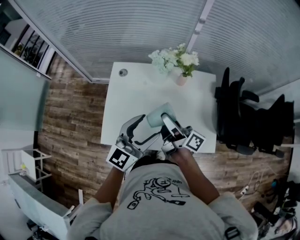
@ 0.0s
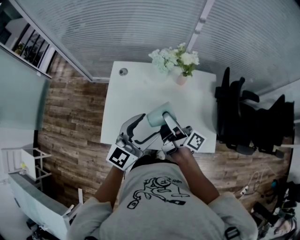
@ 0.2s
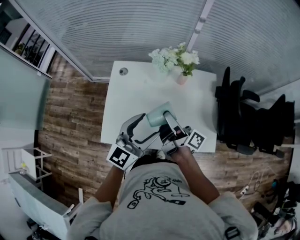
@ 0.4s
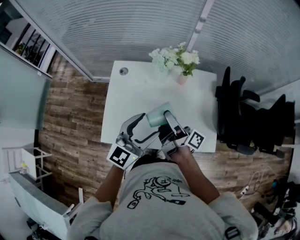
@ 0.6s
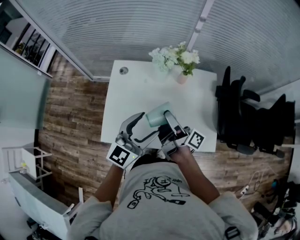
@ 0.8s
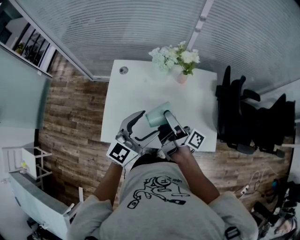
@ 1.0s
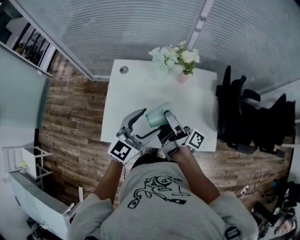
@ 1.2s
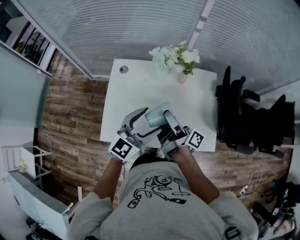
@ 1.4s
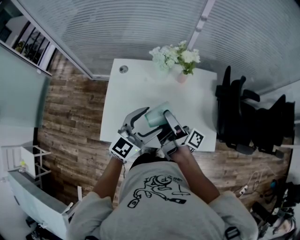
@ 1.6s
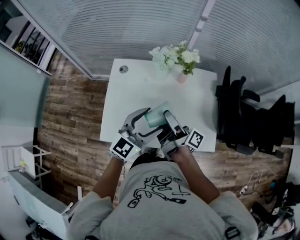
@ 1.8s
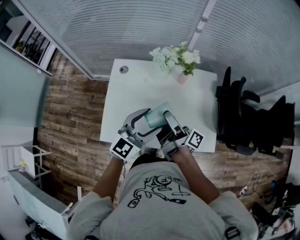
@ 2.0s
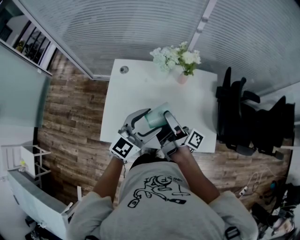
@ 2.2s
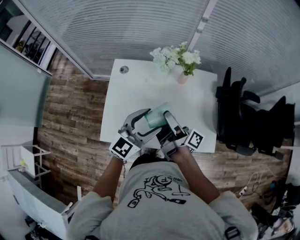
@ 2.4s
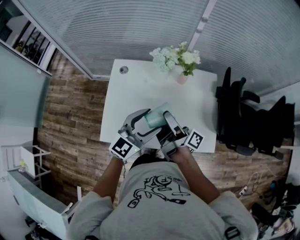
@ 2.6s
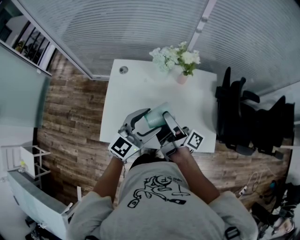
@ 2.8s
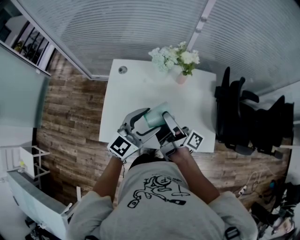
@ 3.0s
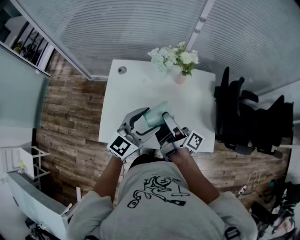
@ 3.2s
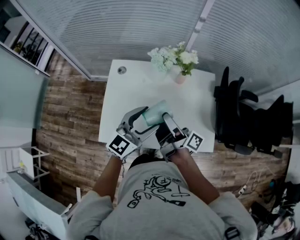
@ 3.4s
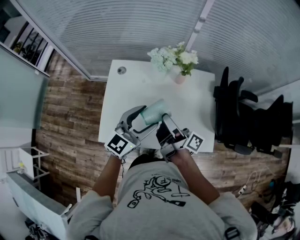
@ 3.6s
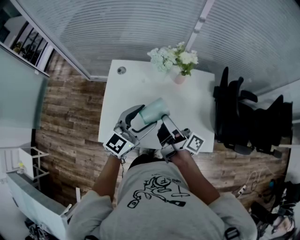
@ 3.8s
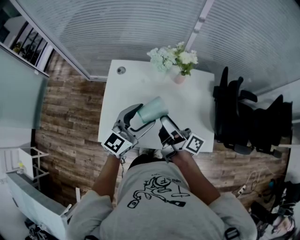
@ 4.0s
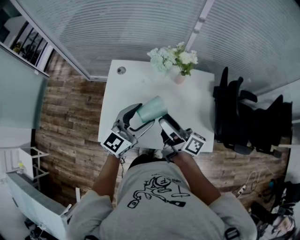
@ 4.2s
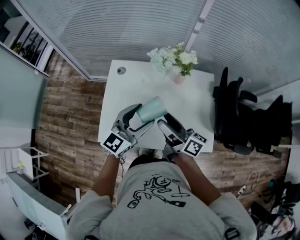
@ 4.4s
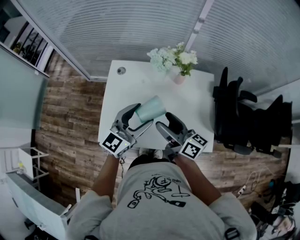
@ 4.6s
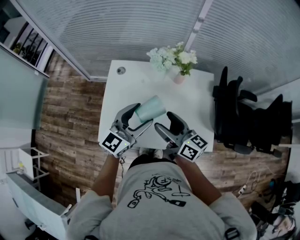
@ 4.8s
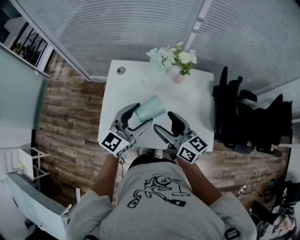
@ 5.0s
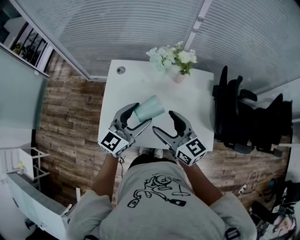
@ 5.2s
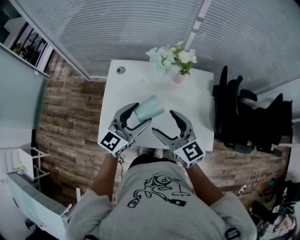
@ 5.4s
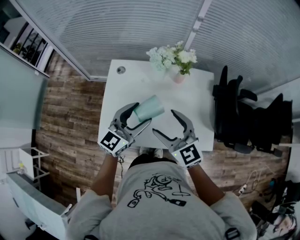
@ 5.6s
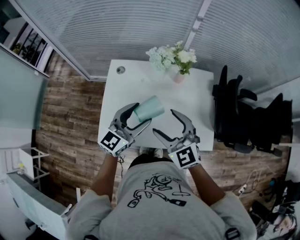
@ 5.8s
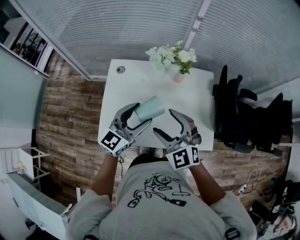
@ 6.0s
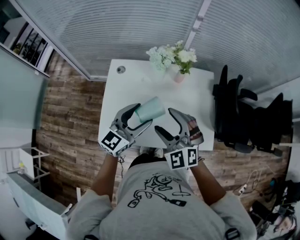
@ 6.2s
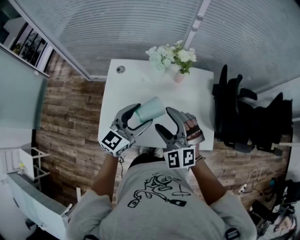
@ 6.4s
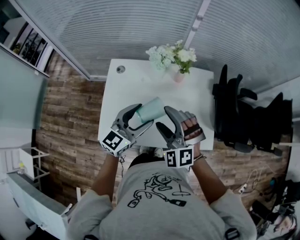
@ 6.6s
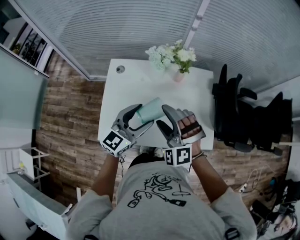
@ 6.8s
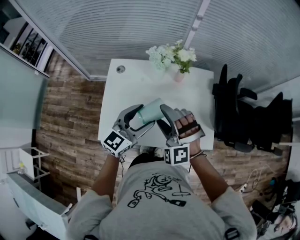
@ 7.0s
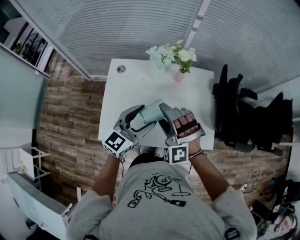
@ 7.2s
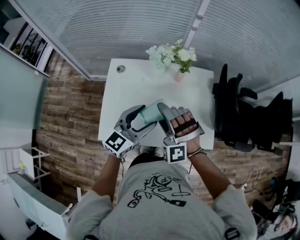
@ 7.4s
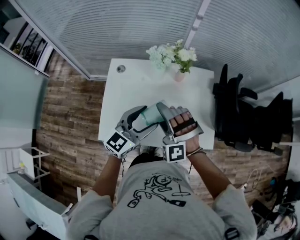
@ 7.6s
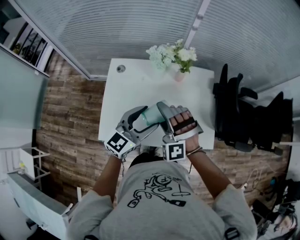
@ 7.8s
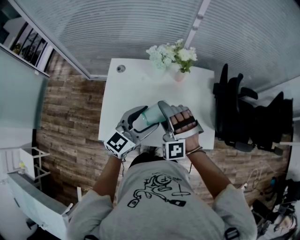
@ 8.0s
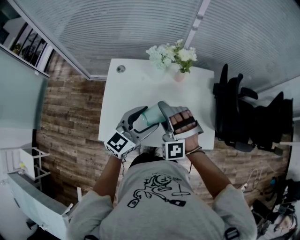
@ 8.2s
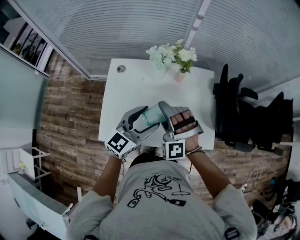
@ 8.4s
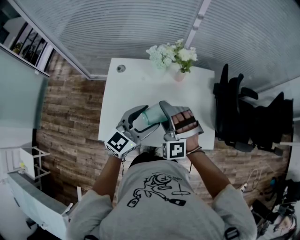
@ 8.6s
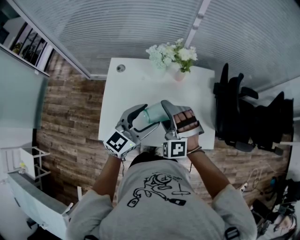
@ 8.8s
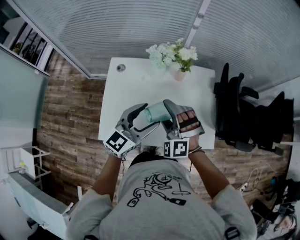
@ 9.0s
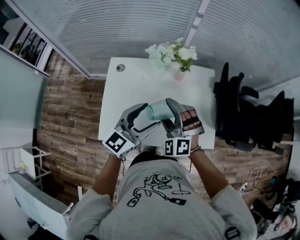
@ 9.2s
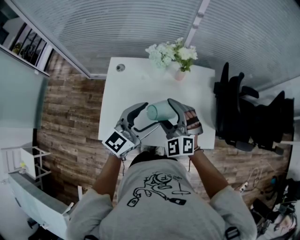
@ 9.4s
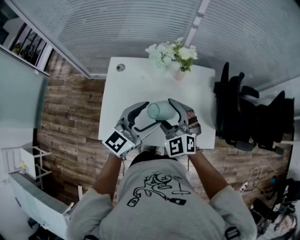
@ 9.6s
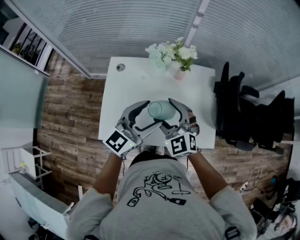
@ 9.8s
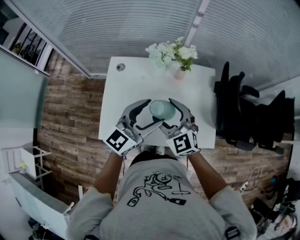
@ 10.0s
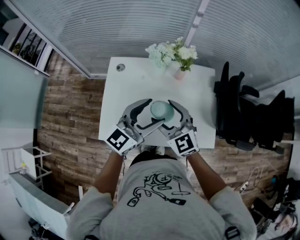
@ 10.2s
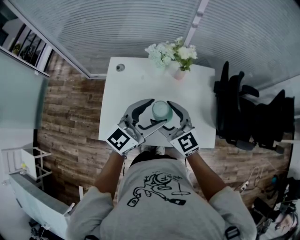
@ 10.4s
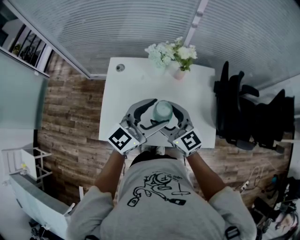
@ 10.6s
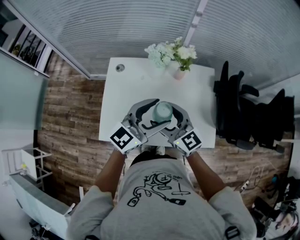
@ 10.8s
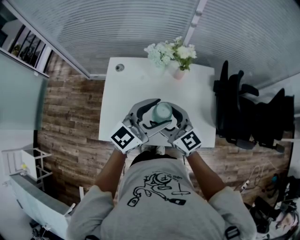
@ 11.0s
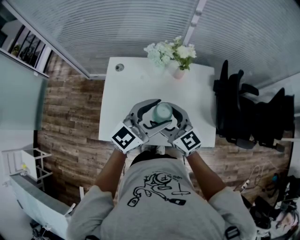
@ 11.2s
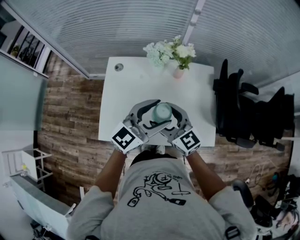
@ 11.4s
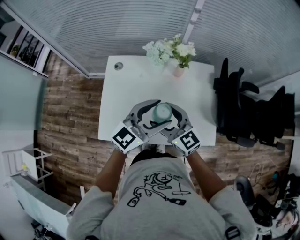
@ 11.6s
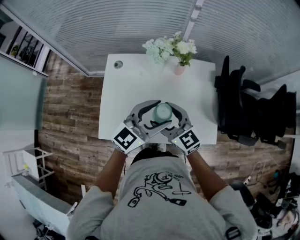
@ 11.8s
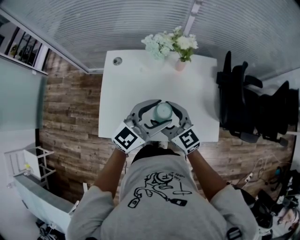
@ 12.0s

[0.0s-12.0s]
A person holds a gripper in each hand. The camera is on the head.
0.0s to 1.6s: The grippers make only small movements.
1.6s to 3.0s: Both grippers stay put.
3.0s to 4.4s: The right gripper changes its angle by about 30 degrees.
4.4s to 6.0s: The right gripper rotates around the line of its fingers by roughly 90 degrees, counterclockwise from behind.
6.0s to 7.6s: The right gripper rotates around the line of its fingers by about 50 degrees, counterclockwise from behind.
7.6s to 9.0s: The grippers stay close to where they were, moving slightly.
9.0s to 10.4s: The right gripper rolls clockwise, seen from behind, by about 60 degrees.
10.4s to 12.0s: The left gripper moves roughly 5 cm. The right gripper goes approximately 5 cm downward.

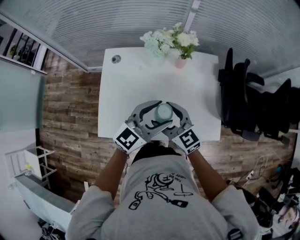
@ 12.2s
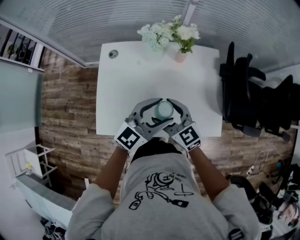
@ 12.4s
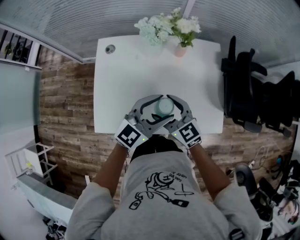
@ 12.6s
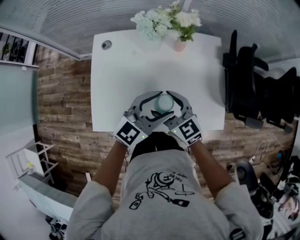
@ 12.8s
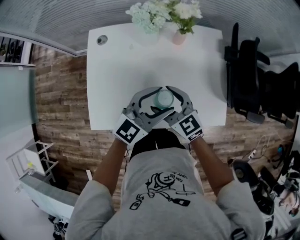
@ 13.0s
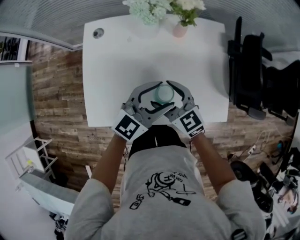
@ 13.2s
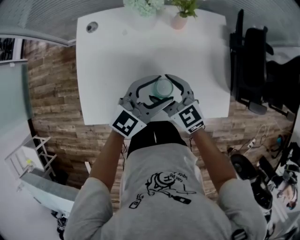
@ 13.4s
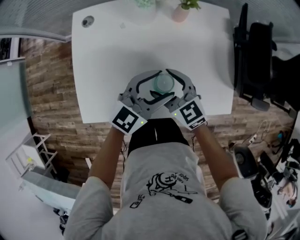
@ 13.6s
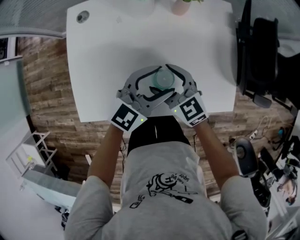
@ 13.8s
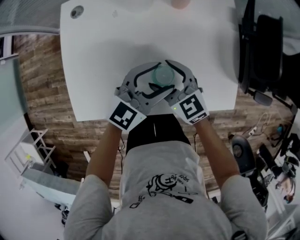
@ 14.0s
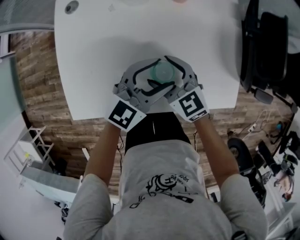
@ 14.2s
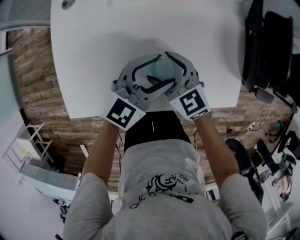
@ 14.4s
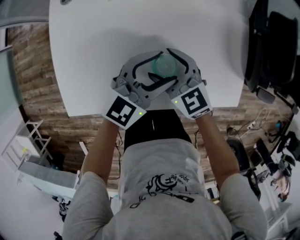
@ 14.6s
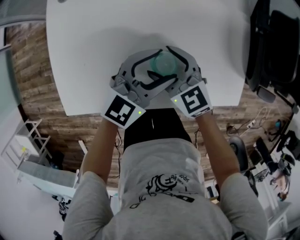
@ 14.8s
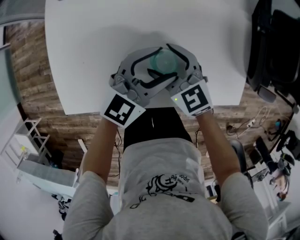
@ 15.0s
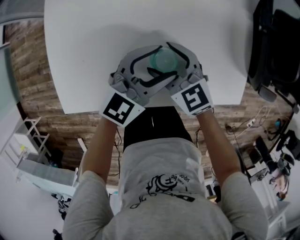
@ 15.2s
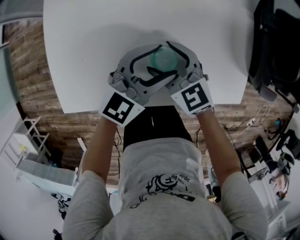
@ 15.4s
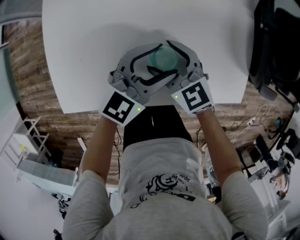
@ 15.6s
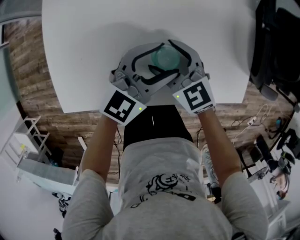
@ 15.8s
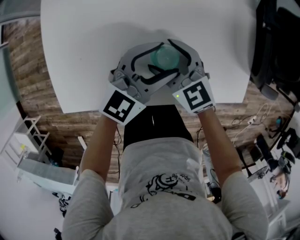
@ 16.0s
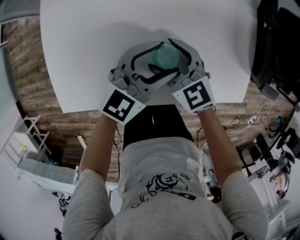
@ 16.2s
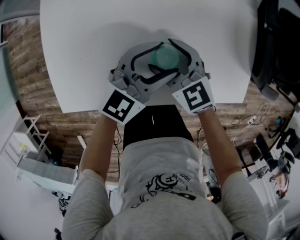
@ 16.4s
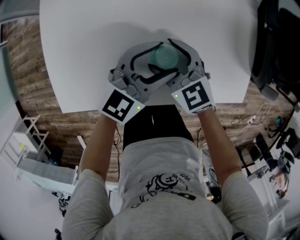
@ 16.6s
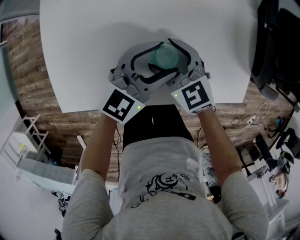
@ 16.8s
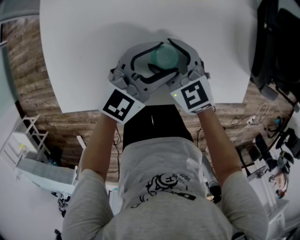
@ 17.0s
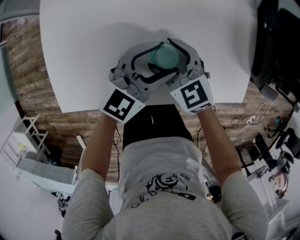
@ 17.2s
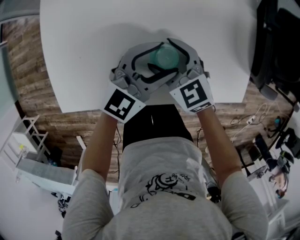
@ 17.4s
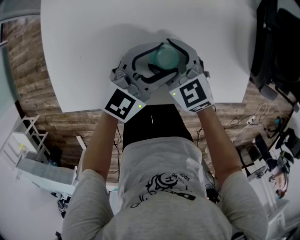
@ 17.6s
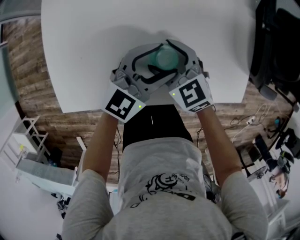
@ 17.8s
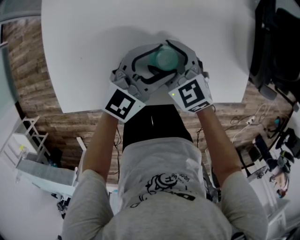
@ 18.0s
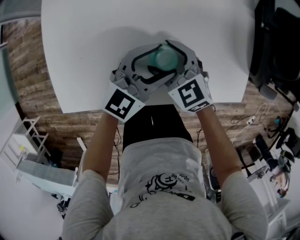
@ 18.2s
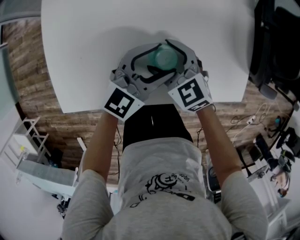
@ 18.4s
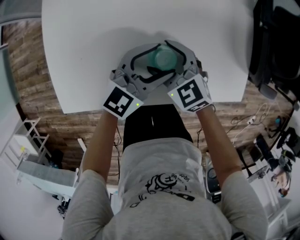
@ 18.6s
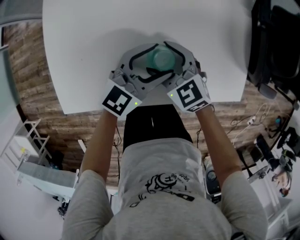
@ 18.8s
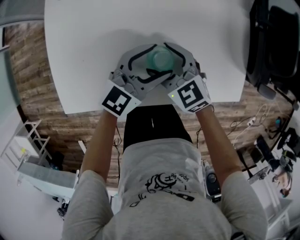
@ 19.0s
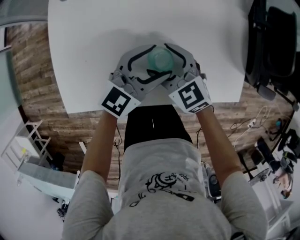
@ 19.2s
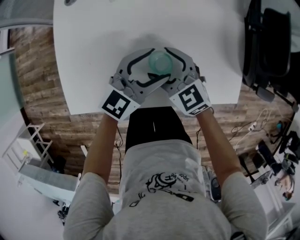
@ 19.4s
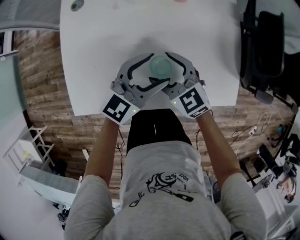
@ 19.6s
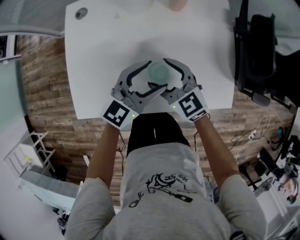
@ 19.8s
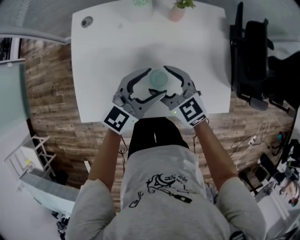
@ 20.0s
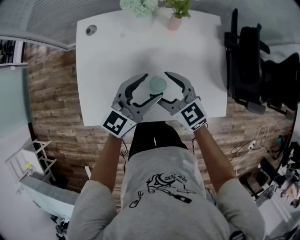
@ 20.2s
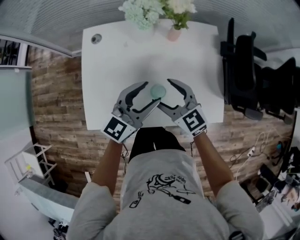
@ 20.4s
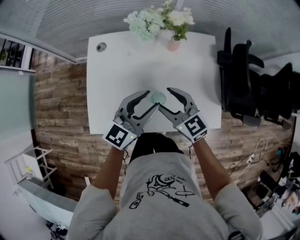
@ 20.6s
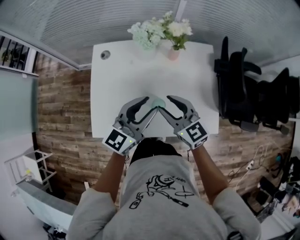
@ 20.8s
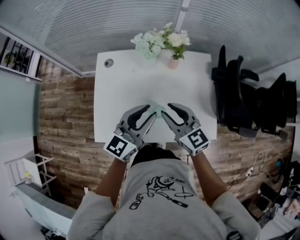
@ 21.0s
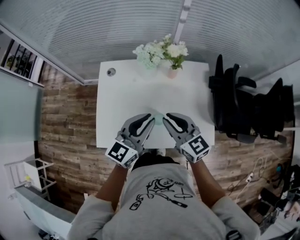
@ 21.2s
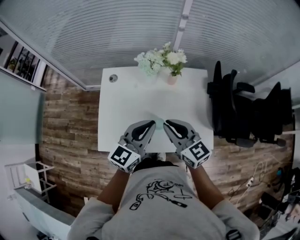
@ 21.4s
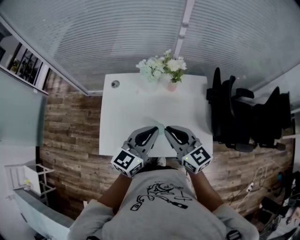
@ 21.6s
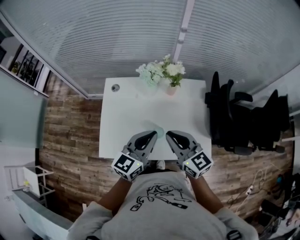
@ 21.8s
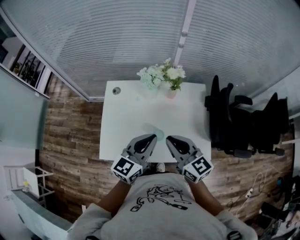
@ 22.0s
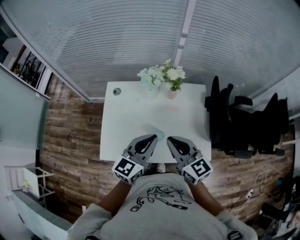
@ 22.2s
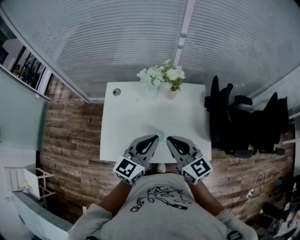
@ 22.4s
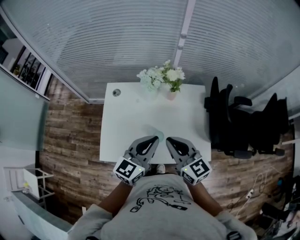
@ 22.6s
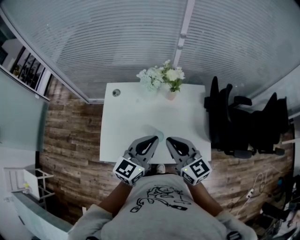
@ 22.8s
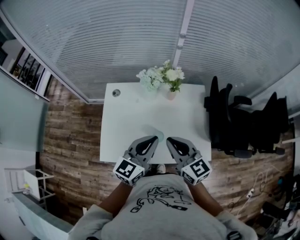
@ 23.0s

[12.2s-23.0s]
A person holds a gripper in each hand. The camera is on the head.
12.2s to 13.8s: The two grippers go some 15 cm downward.
13.8s to 15.2s: The grippers make only small movements.
15.2s to 16.8s: The grippers stay close to where they were, moving slightly.
16.8s to 18.4s: Both grippers stay put.
18.4s to 20.0s: Both grippers move upward, some 10 cm.
20.0s to 21.4s: Both grippers travel together upward, roughly 15 cm. The right gripper closes its fingers. The left gripper closes its fingers.
21.4s to 23.0s: The grippers make only small movements.

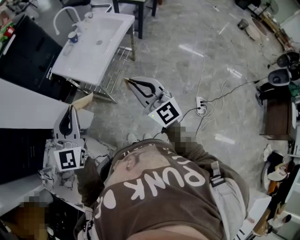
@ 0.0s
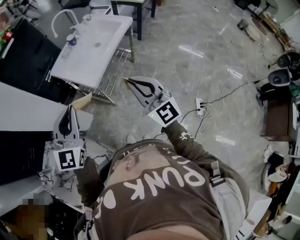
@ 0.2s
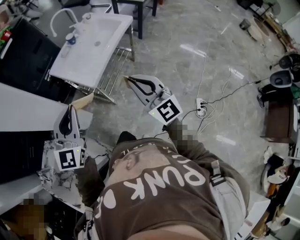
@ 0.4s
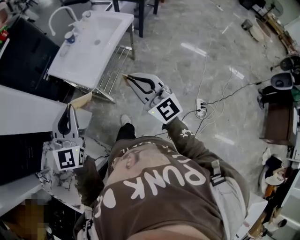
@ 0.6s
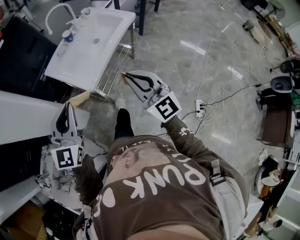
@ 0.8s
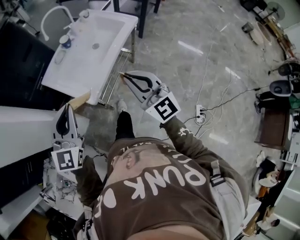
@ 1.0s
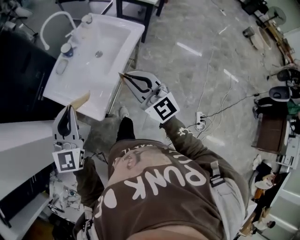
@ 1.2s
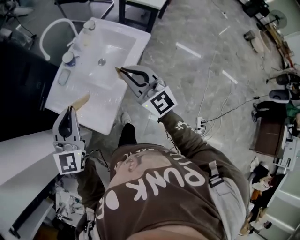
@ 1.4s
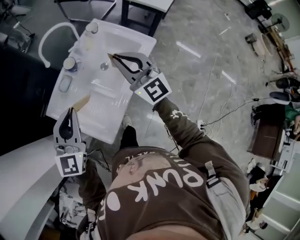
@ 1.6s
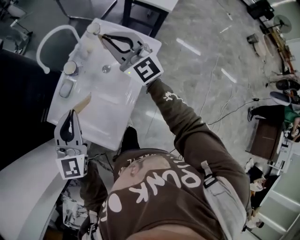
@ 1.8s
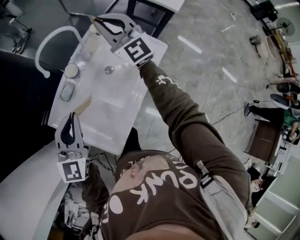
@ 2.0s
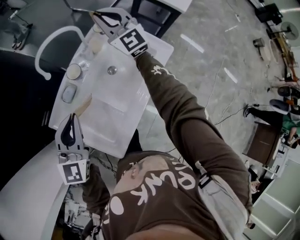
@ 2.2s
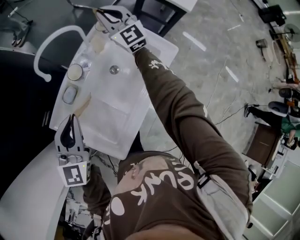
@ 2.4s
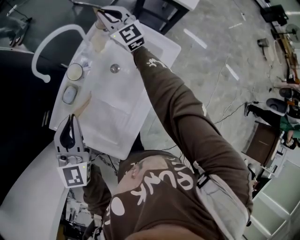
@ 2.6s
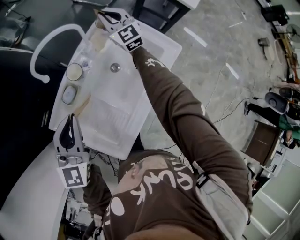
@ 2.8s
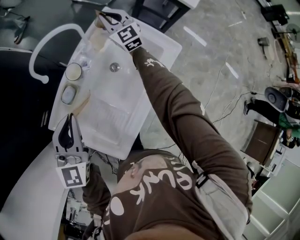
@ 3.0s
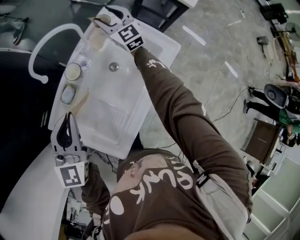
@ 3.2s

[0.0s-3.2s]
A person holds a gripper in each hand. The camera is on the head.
0.0s to 1.6s: The two grippers travel together, forward, some 50 cm.
1.6s to 3.2s: The left gripper shifts some 15 cm forward, while the right gripper is displaced forward and downward by some 40 cm, and opens.
